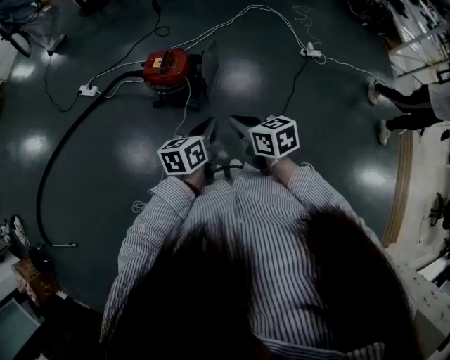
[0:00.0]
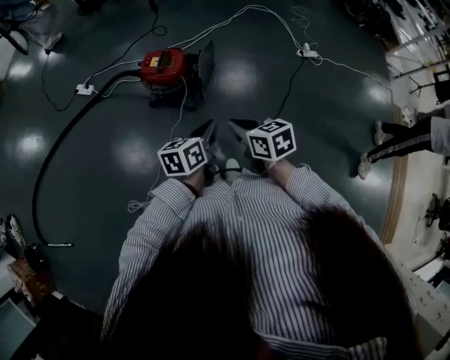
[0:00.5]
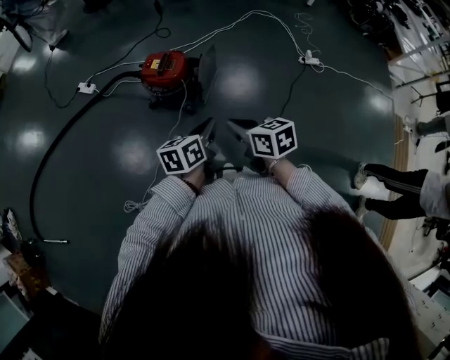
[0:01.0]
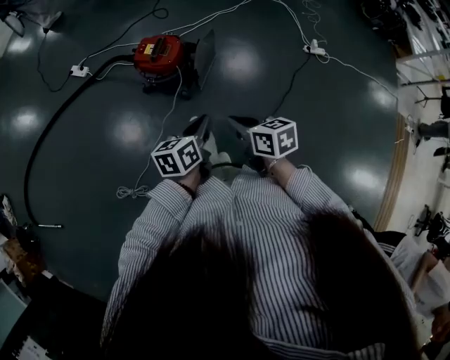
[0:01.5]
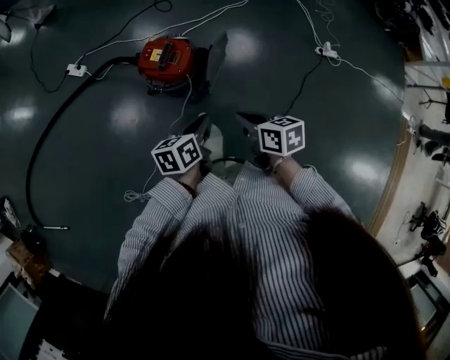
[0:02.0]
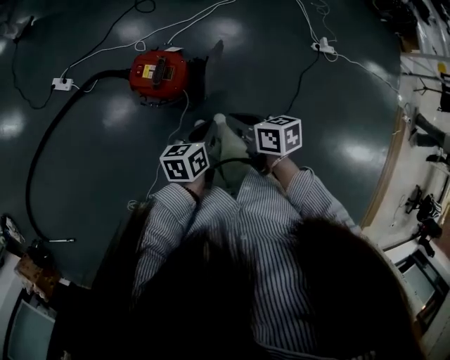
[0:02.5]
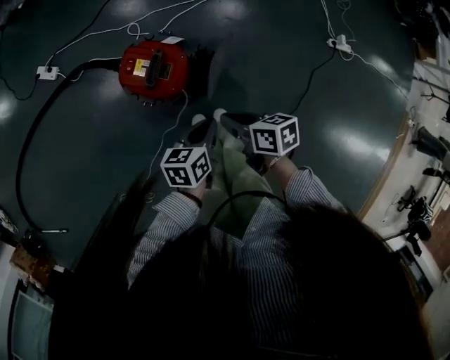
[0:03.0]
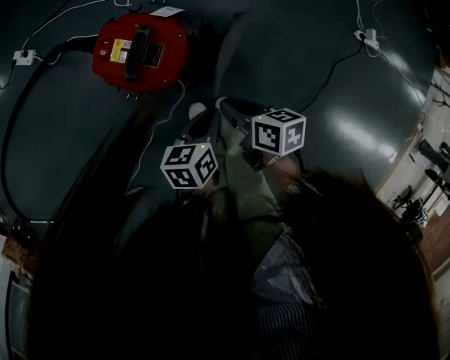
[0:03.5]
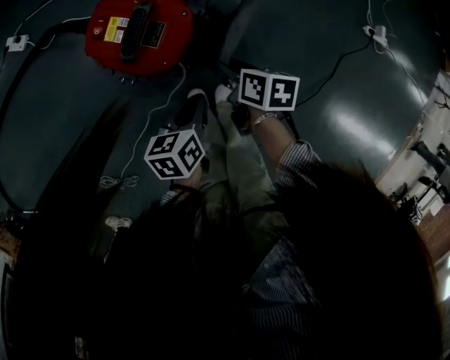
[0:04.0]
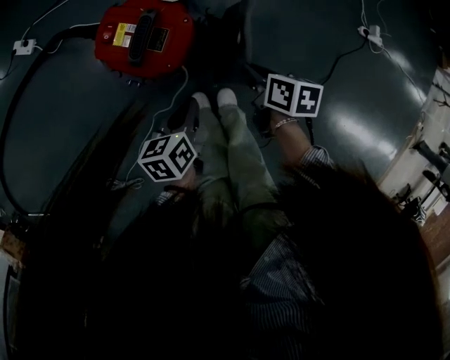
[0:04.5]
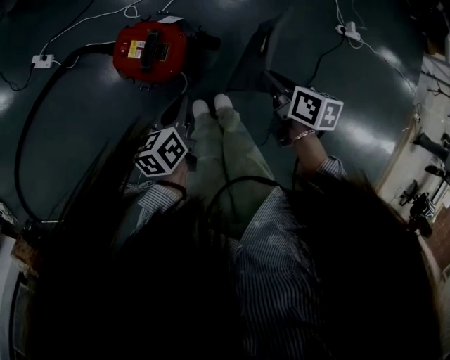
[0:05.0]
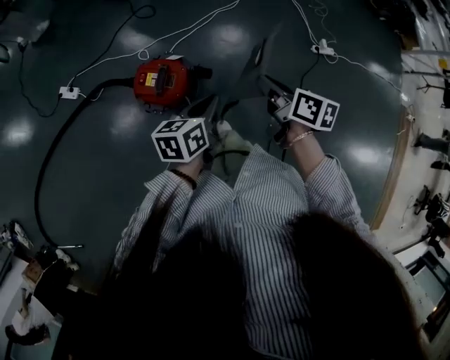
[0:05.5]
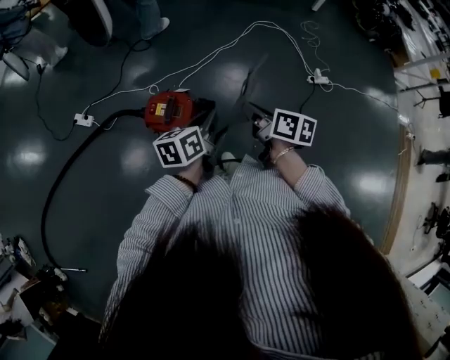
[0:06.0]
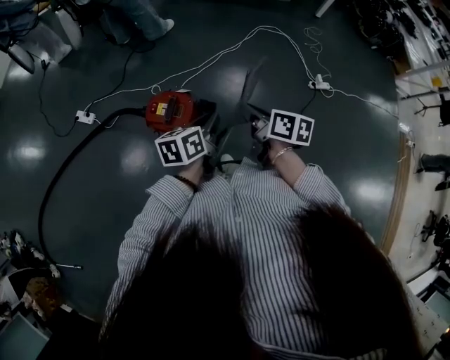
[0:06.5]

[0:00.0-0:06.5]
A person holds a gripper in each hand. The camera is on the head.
0:00.0 to 0:02.0: Both grippers move forward and downward, some 15 cm.
0:02.0 to 0:04.5: The grippers both shift downward and forward by about 35 cm. The right gripper changes its angle by roughly 20 degrees, and opens, then closes again.
0:04.5 to 0:06.5: Both grippers move upward, roughly 40 cm. The left gripper turns by approximately 20 degrees. Meanwhile the right gripper rotates roughly 30 degrees.

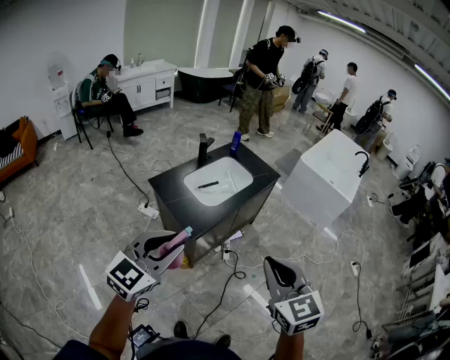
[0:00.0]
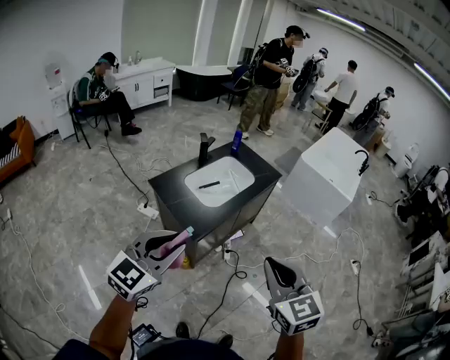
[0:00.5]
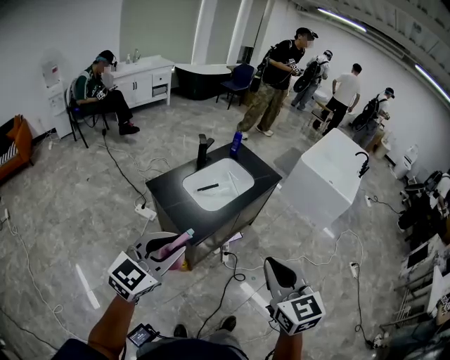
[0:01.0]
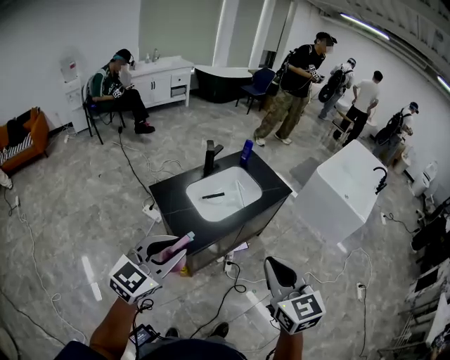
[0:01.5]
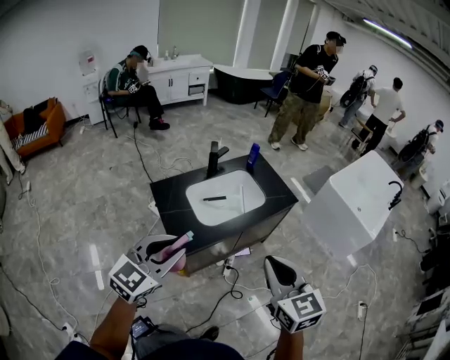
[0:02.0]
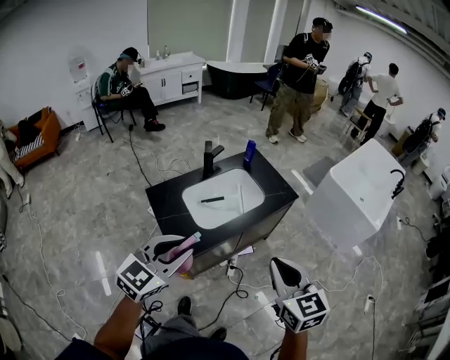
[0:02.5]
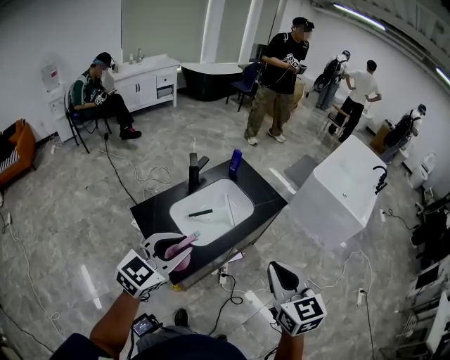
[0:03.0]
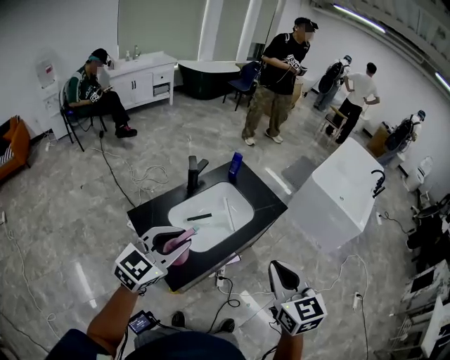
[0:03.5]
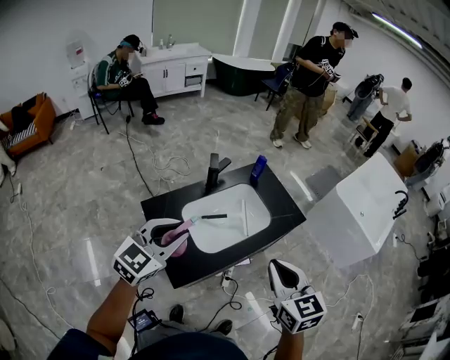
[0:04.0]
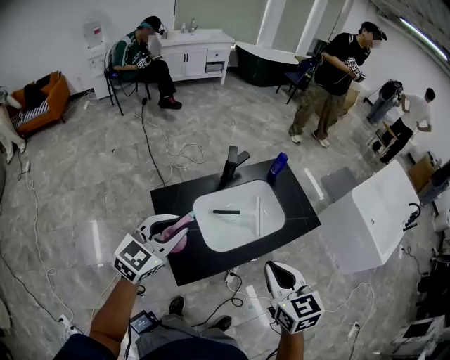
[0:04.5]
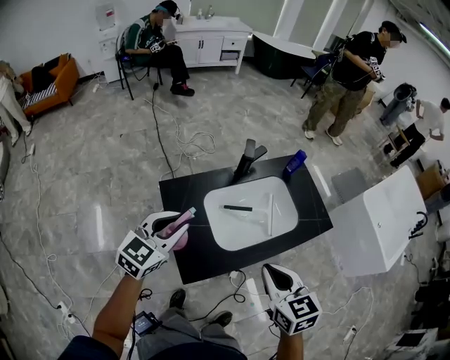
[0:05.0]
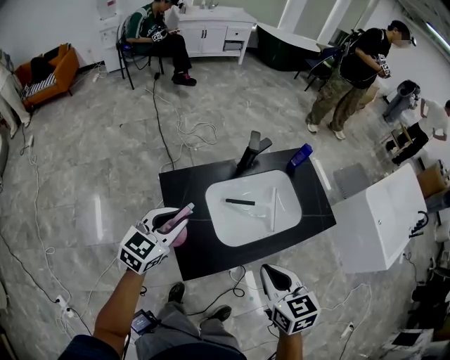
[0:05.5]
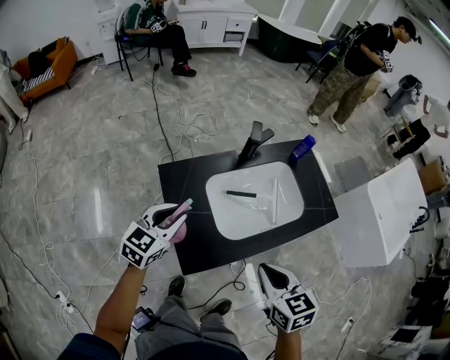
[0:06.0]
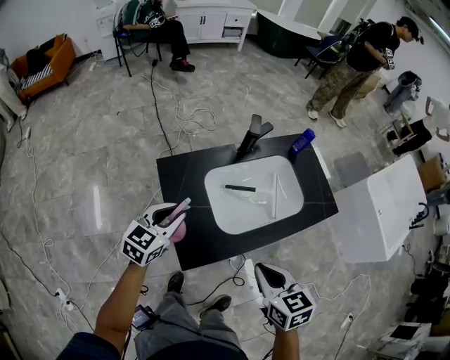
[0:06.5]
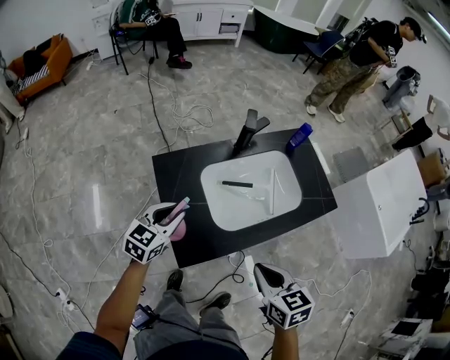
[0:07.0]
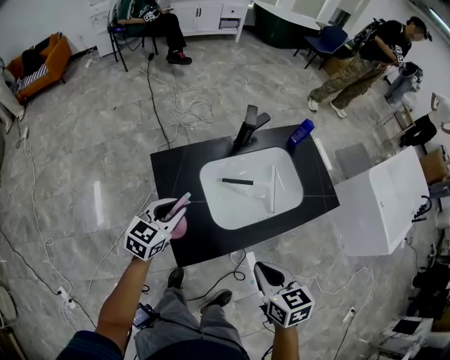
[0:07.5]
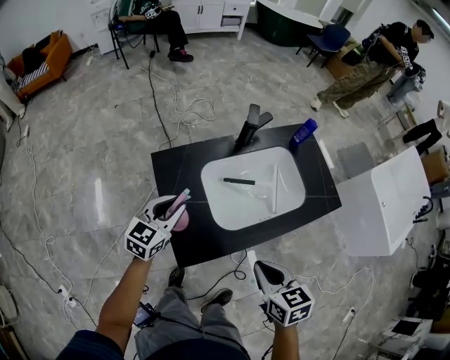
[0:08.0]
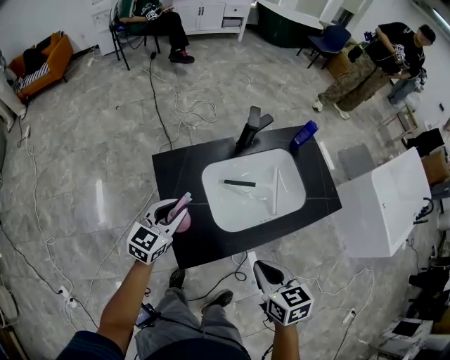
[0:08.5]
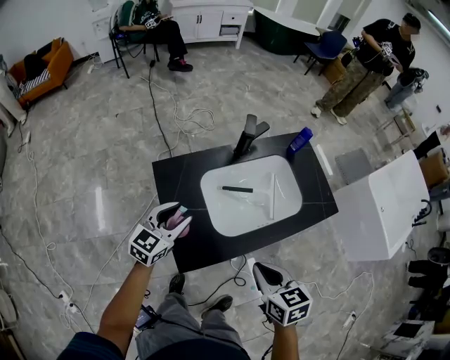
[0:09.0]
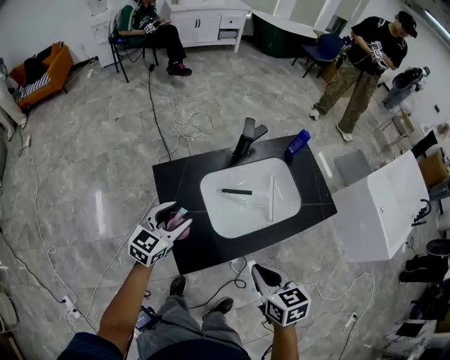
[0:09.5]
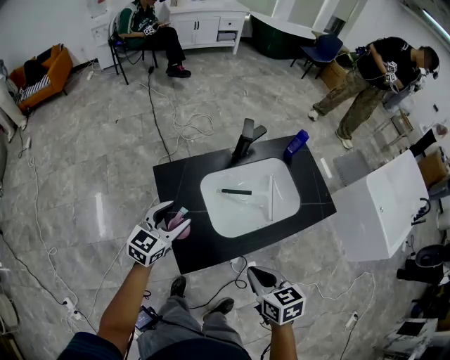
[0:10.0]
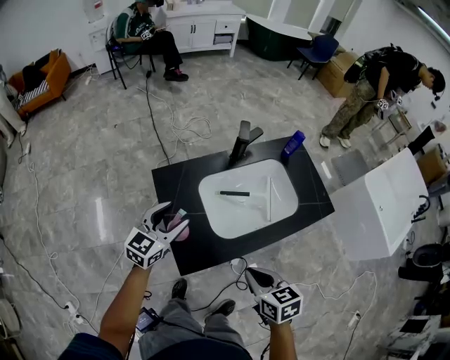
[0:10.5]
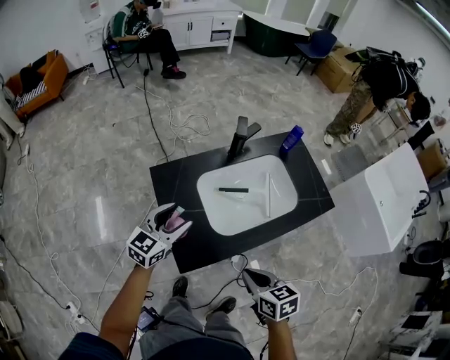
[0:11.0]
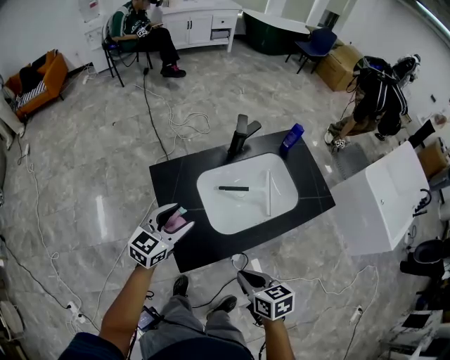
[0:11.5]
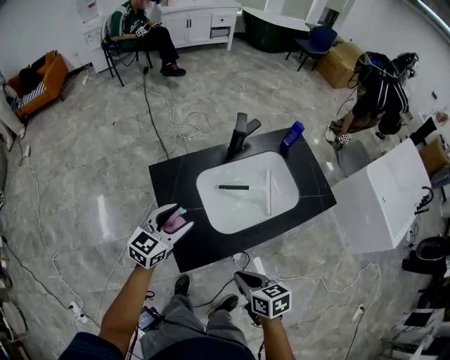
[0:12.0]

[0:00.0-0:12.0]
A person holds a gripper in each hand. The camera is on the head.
0:00.0 to 0:02.0: The right gripper is displaced forward by some 25 cm, while the left gripper heads forward and to the right, covering roughly 20 cm.
0:02.0 to 0:04.0: The two grippers go roughly 20 cm forward.
0:04.0 to 0:06.0: The grippers both shift downward and to the left by some 20 cm. The right gripper turns by about 20 degrees; the left gripper rotates about 20 degrees.
0:06.0 to 0:08.0: The grippers both shift downward by roughly 5 cm.
0:08.0 to 0:10.0: The left gripper opens up.
0:10.0 to 0:12.0: The right gripper moves downward, about 5 cm.

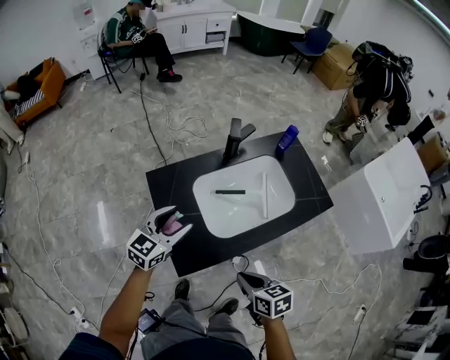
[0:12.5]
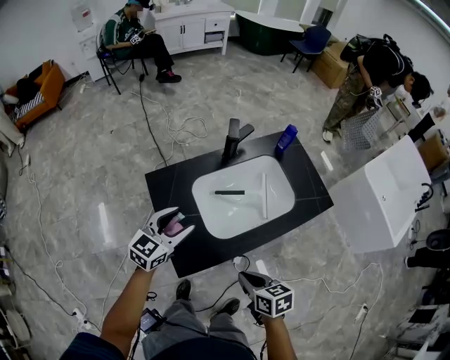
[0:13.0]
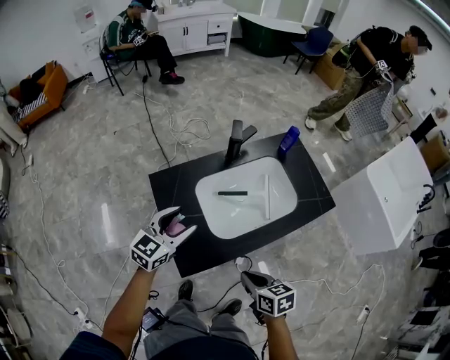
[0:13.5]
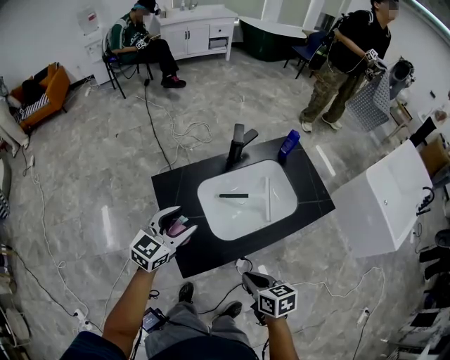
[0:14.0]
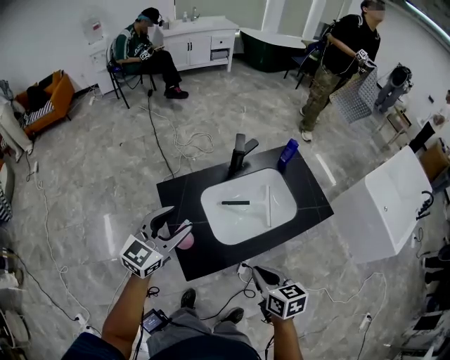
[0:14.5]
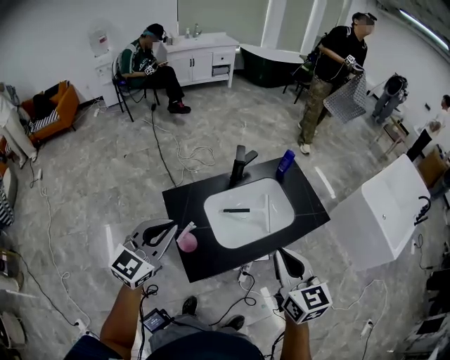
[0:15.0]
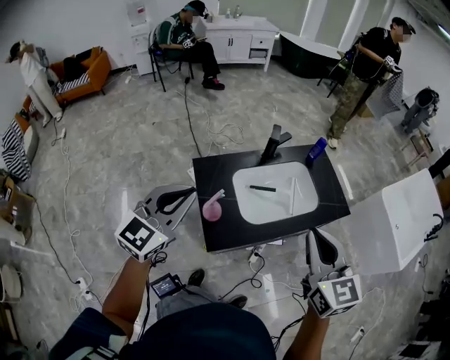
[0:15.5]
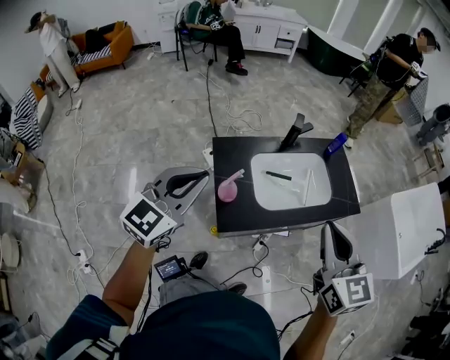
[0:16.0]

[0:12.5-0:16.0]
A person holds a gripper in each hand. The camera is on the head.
0:12.5 to 0:14.5: The left gripper shifts roughly 10 cm upward, while the right gripper travels upward by roughly 10 cm.
0:14.5 to 0:16.0: The left gripper travels backward, upward and to the left by roughly 20 cm, and closes up, while the right gripper travels upward by roughly 25 cm, and swivels about 40 degrees.

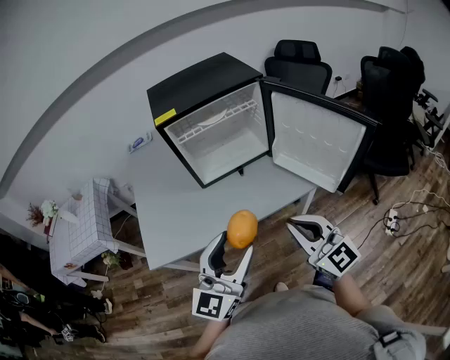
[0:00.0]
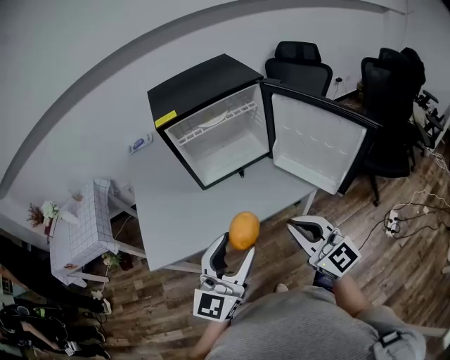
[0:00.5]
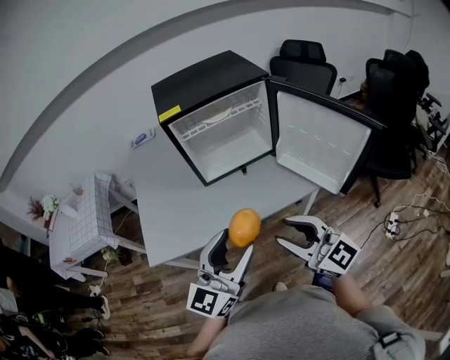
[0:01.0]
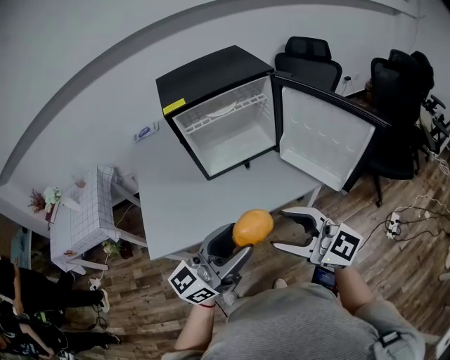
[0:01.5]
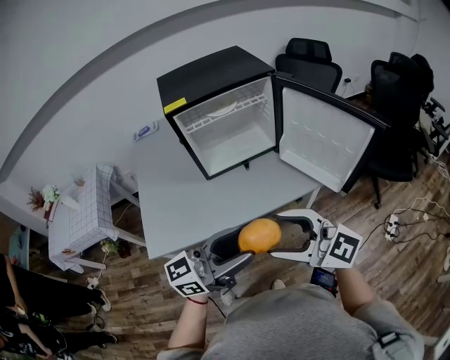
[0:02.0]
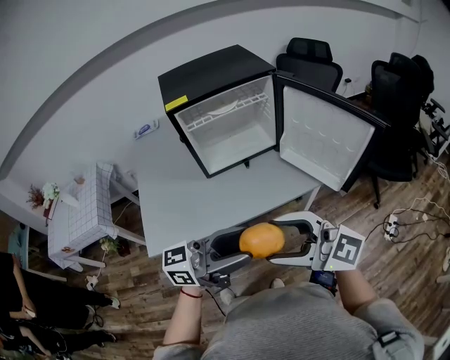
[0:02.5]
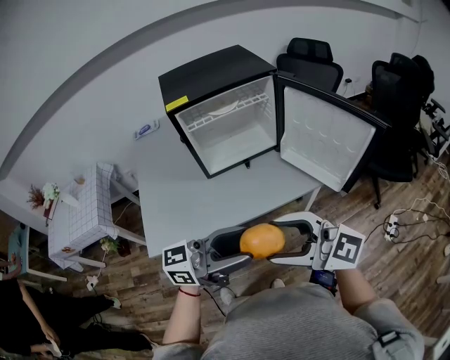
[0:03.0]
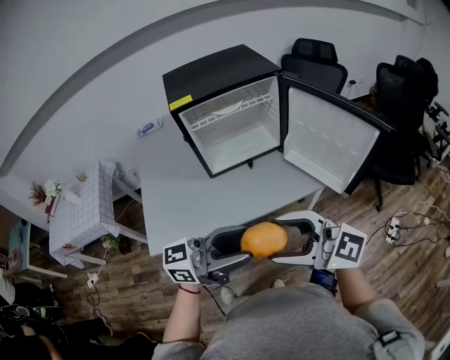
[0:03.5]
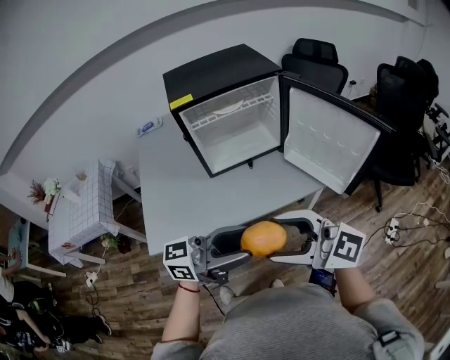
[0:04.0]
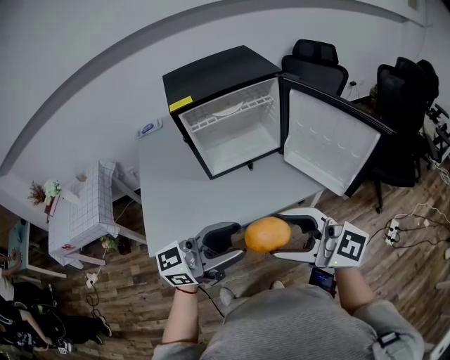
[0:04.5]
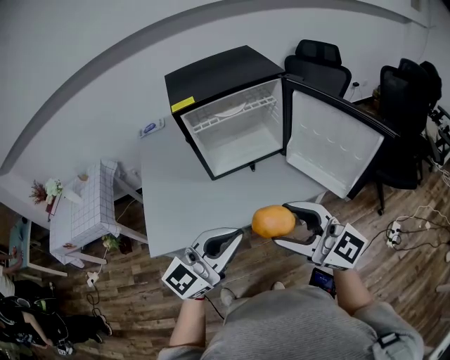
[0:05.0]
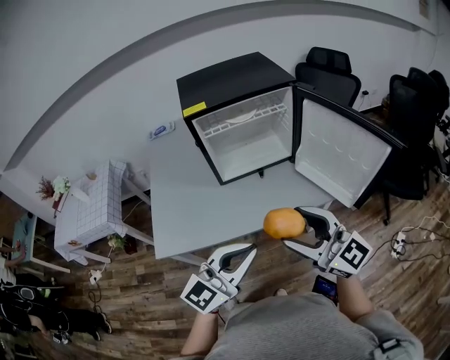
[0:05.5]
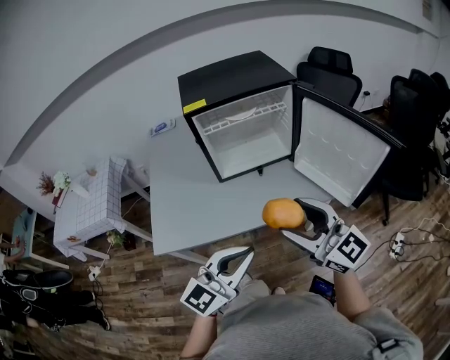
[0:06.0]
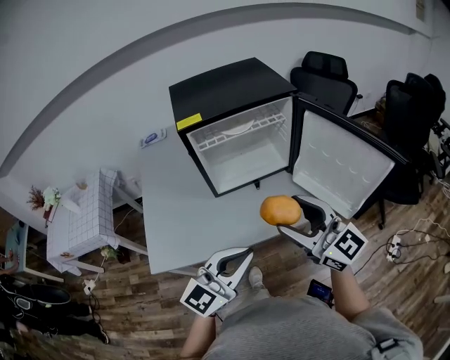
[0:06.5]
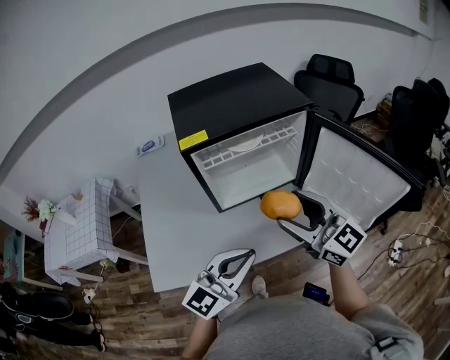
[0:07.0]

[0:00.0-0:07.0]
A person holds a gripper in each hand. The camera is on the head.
0:00.0 to 0:02.0: The left gripper rotates about 50 degrees. The right gripper moves roughly 10 cm, changes its angle by approximately 30 degrees, and opens up.
0:02.0 to 0:03.5: The grippers make only small movements.
0:03.5 to 0:05.0: The left gripper swivels about 40 degrees, and closes up. Meanwhile the right gripper ends up roughly 5 cm from where it was.
0:05.0 to 0:07.0: The right gripper travels forward by about 20 cm. The left gripper goes roughly 15 cm forward.
